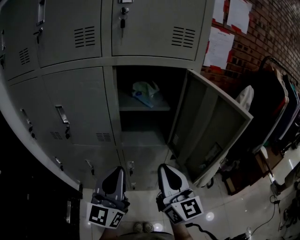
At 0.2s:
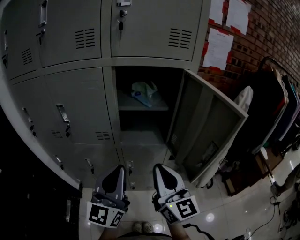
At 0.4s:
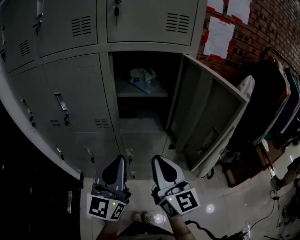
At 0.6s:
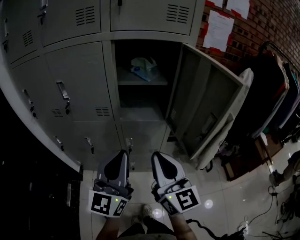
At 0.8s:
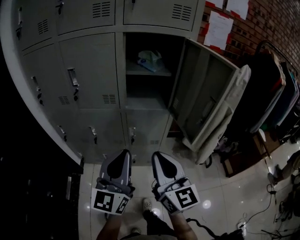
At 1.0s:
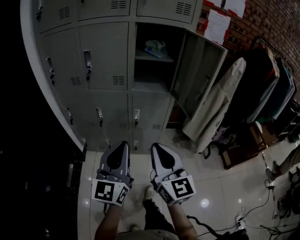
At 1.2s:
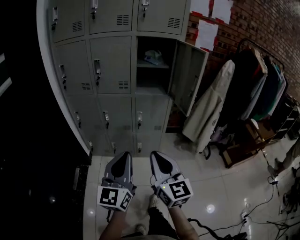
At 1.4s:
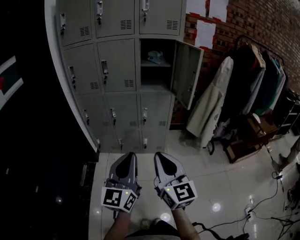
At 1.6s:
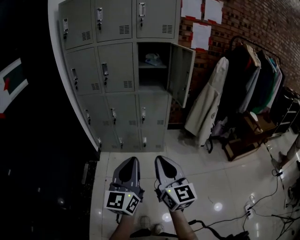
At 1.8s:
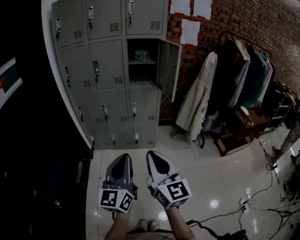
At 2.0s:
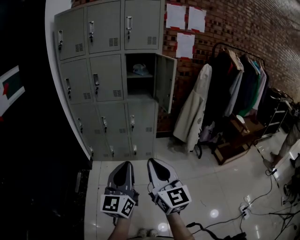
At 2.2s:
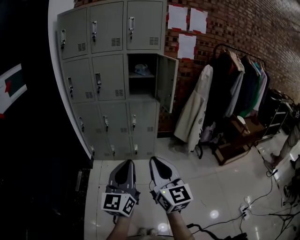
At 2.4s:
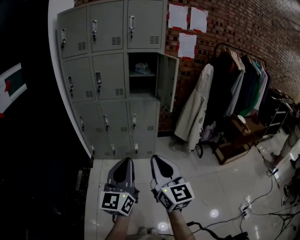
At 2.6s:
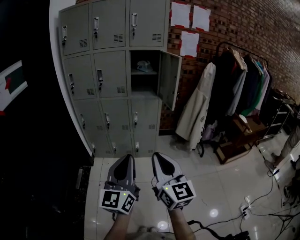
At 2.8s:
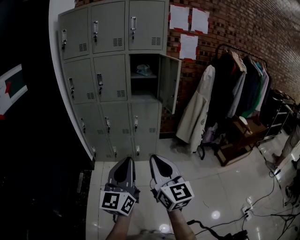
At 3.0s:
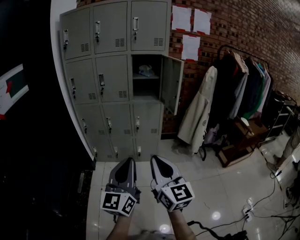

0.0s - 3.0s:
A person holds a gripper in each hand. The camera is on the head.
0.0s - 1.6s: The two grippers travel together, backward, some 50 cm.
1.6s - 3.0s: The right gripper shifts by approximately 5 cm. The left gripper changes place by approximately 5 cm.

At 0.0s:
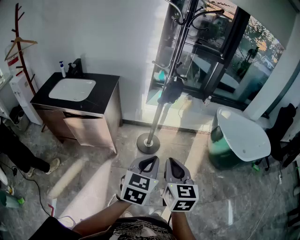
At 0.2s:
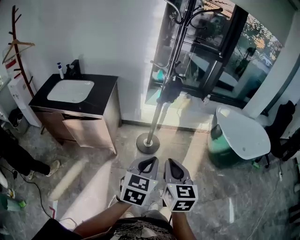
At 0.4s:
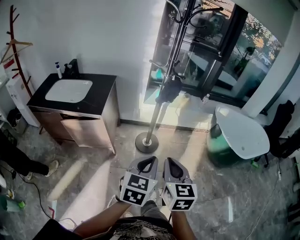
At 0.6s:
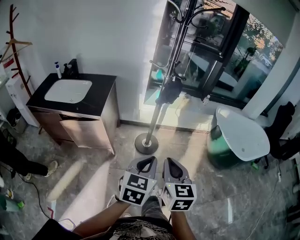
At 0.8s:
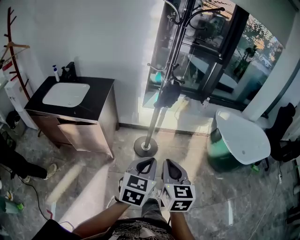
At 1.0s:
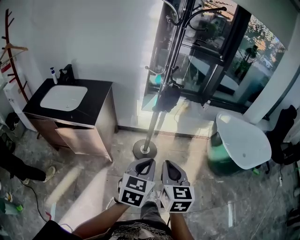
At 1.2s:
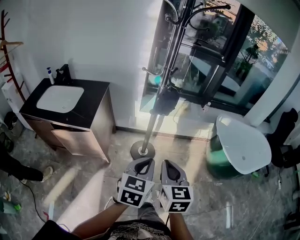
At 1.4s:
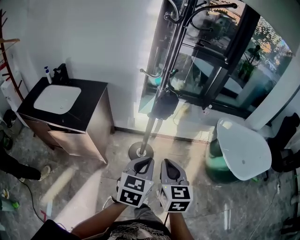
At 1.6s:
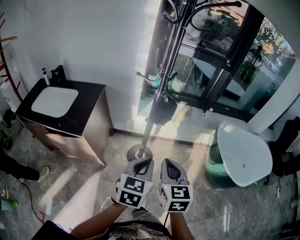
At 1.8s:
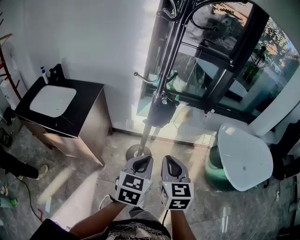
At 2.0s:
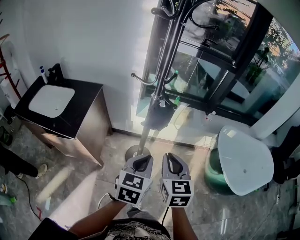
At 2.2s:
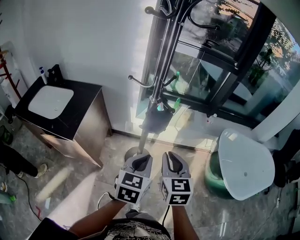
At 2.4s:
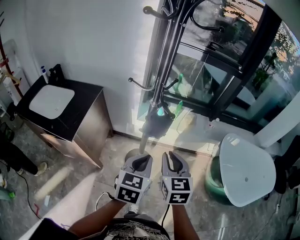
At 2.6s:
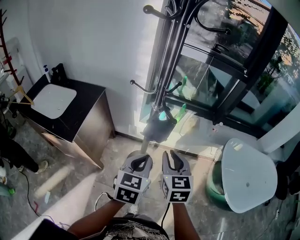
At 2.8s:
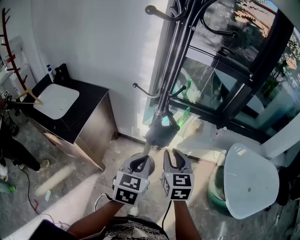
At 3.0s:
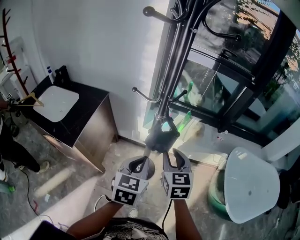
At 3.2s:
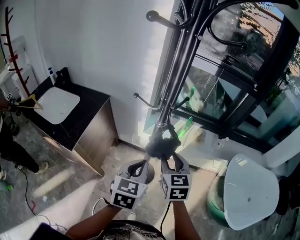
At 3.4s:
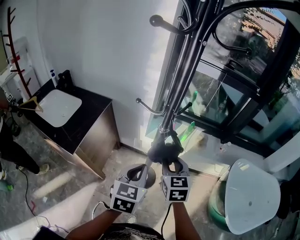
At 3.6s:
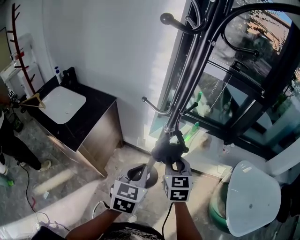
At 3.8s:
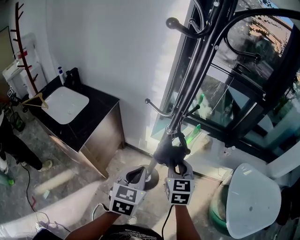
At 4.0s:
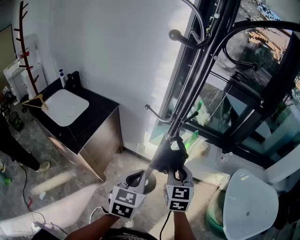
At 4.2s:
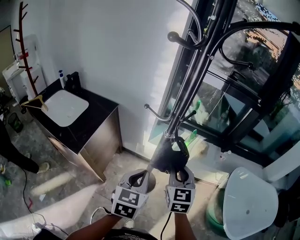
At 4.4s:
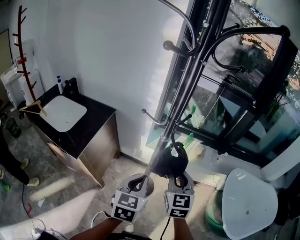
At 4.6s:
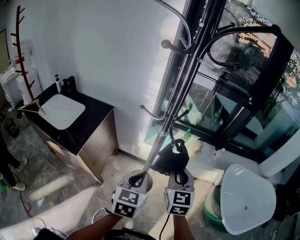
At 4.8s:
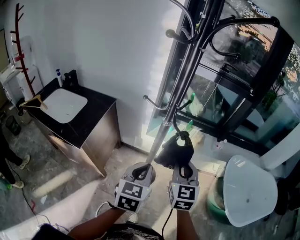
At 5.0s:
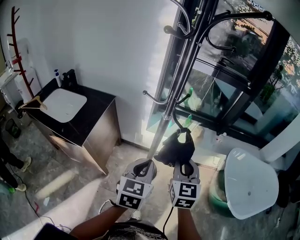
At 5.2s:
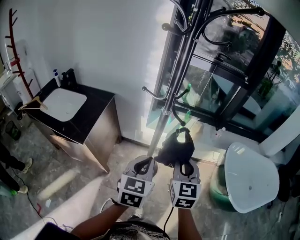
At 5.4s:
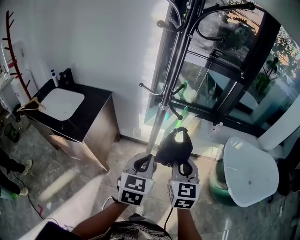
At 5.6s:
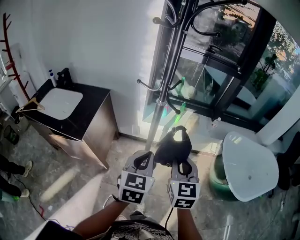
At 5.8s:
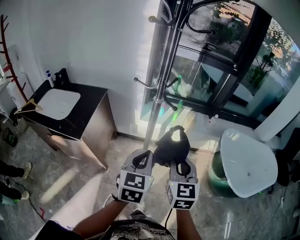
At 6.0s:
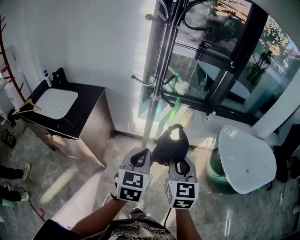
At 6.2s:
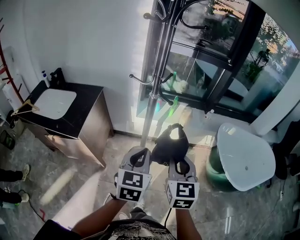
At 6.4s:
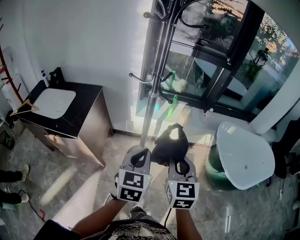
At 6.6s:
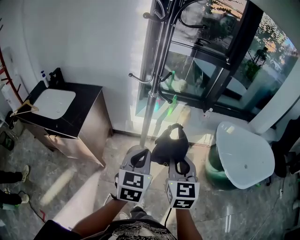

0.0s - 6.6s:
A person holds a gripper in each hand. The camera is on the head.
0.0s - 1.6s: The grippers both shift forward by some 20 cm.
1.6s - 3.2s: Both grippers move forward, about 20 cm. The right gripper opens its fingers.
3.2s - 5.0s: The right gripper shifts about 10 cm backward and upward, and closes its fingers. The left gripper is displaced backward by approximately 5 cm.
5.0s - 6.6s: The left gripper is displaced backward by roughly 5 cm. Meanwhile the right gripper goes some 10 cm backward.

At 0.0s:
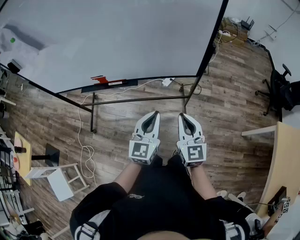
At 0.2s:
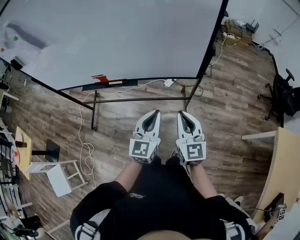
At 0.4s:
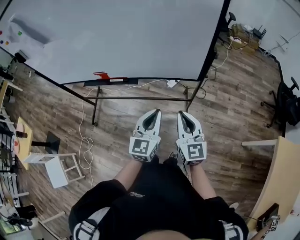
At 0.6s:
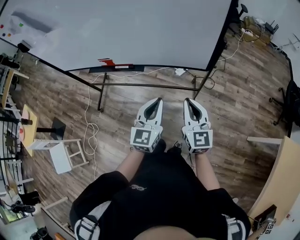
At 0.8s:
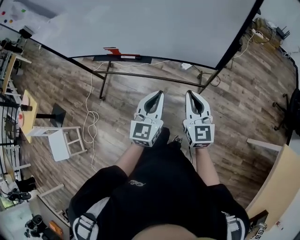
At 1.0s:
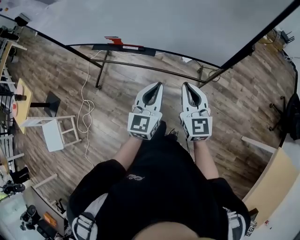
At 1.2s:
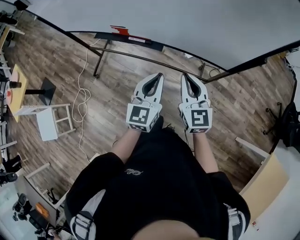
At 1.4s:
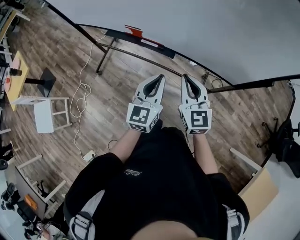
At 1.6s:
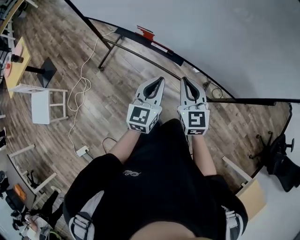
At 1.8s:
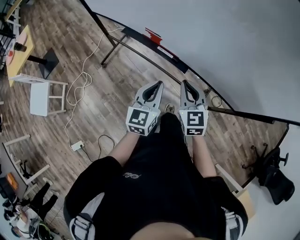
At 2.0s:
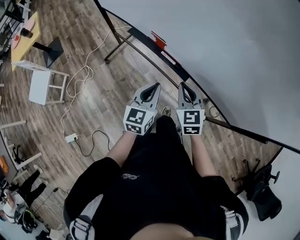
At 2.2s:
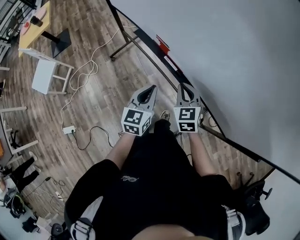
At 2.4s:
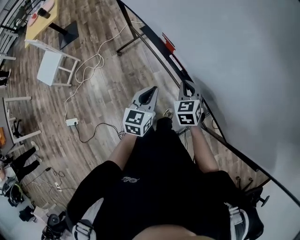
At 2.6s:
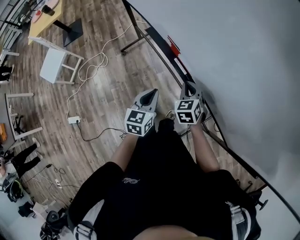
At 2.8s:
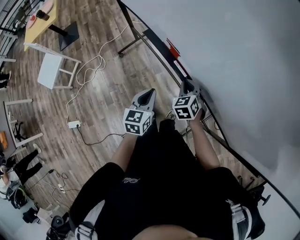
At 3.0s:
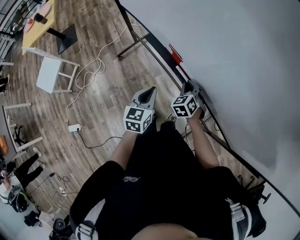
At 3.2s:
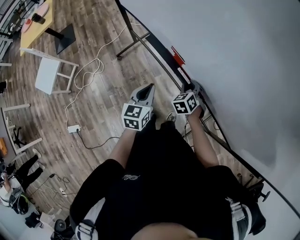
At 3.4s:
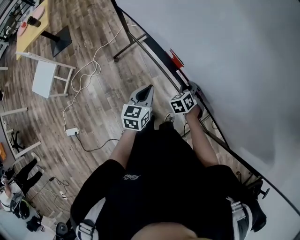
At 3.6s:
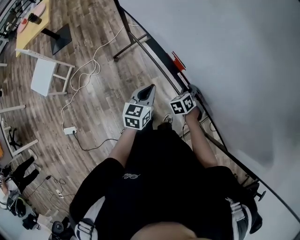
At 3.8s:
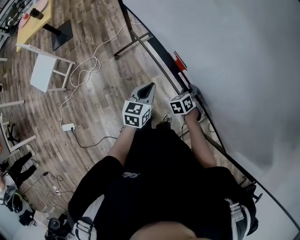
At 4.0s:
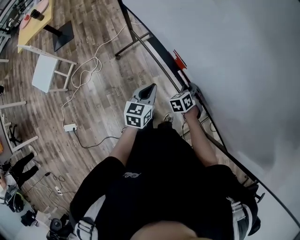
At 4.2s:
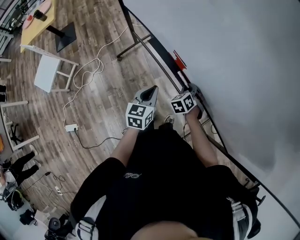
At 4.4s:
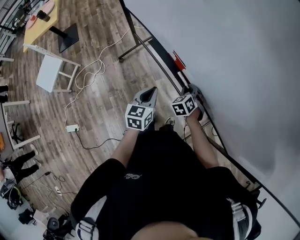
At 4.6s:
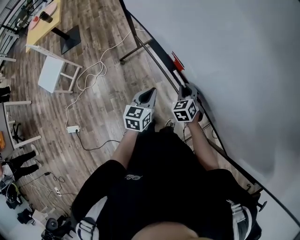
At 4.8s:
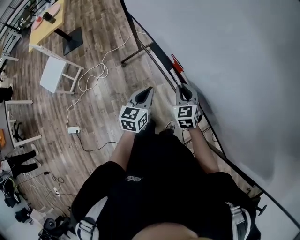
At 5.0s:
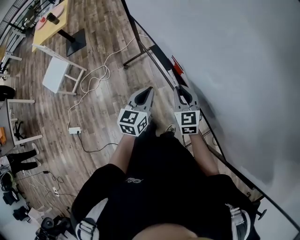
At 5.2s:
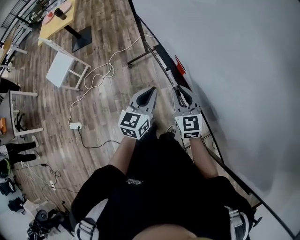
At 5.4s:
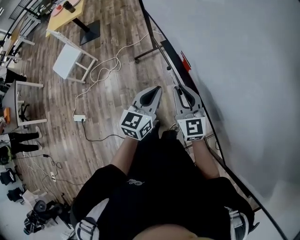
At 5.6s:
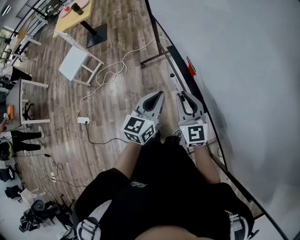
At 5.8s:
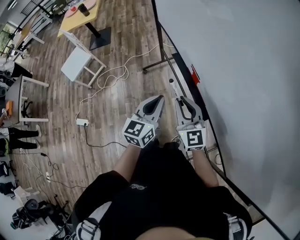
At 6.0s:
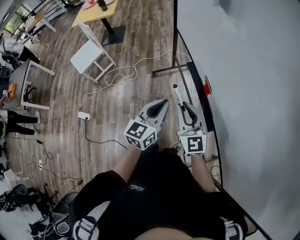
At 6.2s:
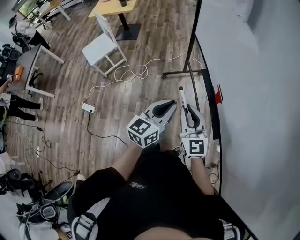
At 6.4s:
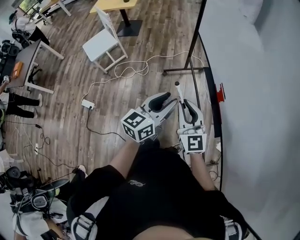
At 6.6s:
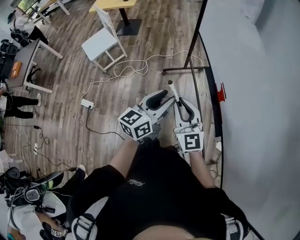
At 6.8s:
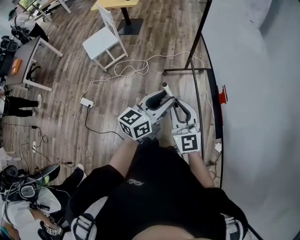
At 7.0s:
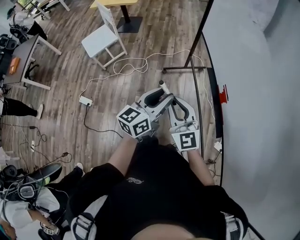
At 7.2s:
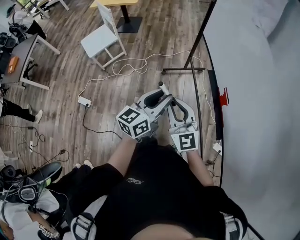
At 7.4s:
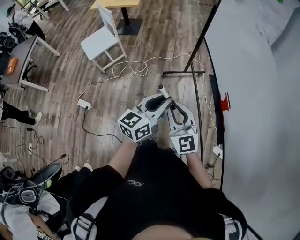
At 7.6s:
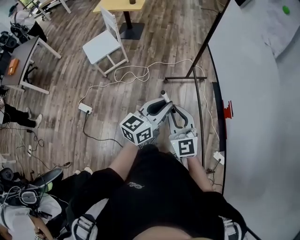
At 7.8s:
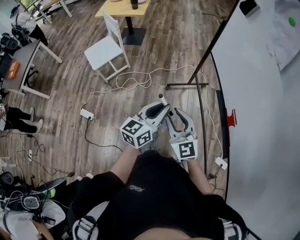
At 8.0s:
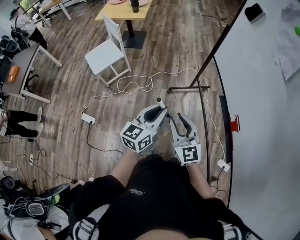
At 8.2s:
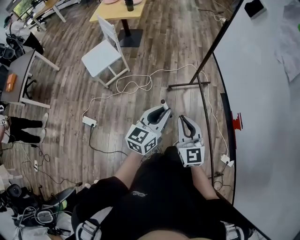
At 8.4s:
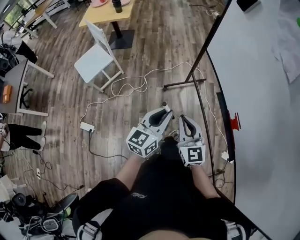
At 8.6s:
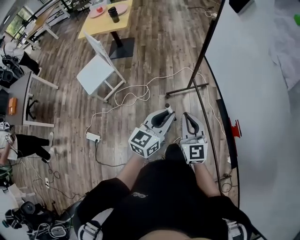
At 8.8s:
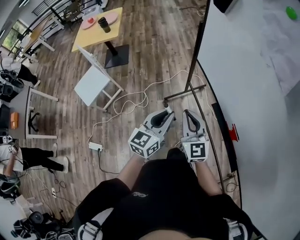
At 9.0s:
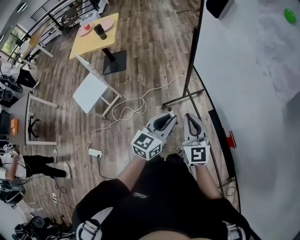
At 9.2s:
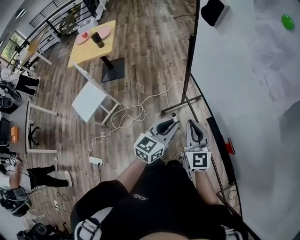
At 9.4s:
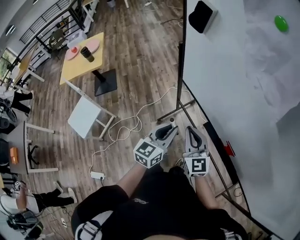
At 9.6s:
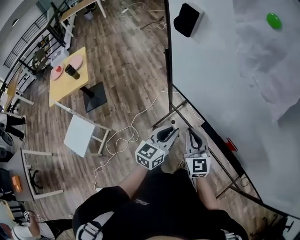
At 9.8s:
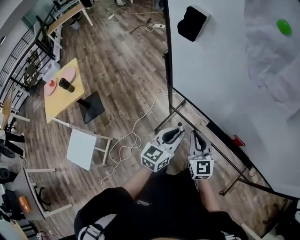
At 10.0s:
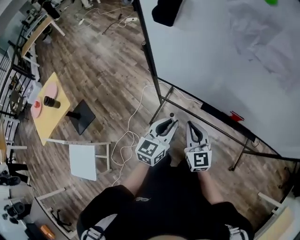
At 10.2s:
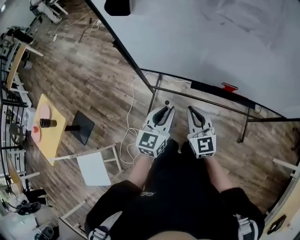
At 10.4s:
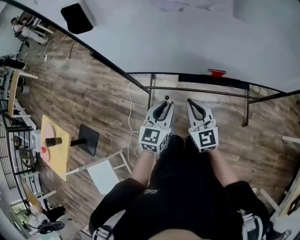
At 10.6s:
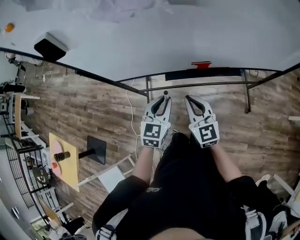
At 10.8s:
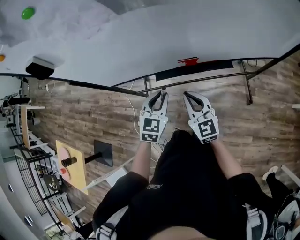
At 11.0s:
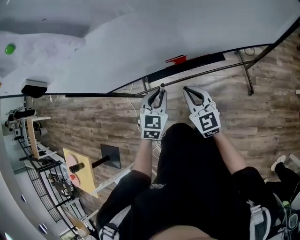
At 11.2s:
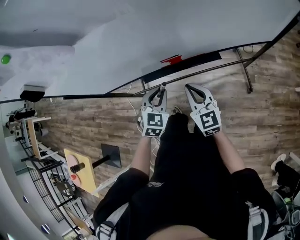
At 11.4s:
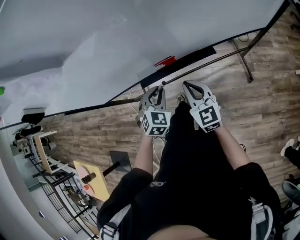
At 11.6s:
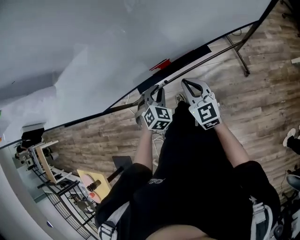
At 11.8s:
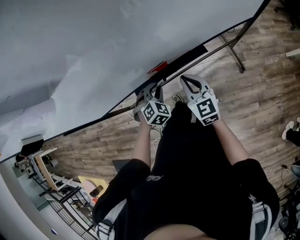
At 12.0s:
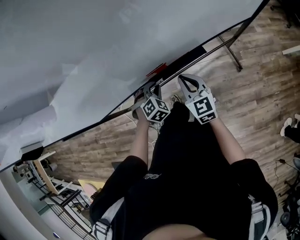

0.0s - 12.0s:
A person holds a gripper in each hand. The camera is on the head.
0.0s - 1.6s: The right gripper shifts by roughly 25 cm, and turns by about 30 degrees. Meanwhile the left gripper ends up approximately 20 cm from where it was, and swivels approximately 30 degrees.
1.6s - 3.0s: The left gripper travels forward, downward and to the left by about 20 cm, and changes its angle by approximately 30 degrees. Meanwhile the right gripper moves forward and downward, approximately 25 cm, and tilts its fingers some 30 degrees downward.
4.4s - 6.0s: The right gripper heads upward, covering approximately 25 cm, and points its fingers roughly 50 degrees further upward. The left gripper goes roughly 15 cm upward, and swivels some 20 degrees.
6.0s - 7.6s: The grippers both shift to the left by some 20 cm. The right gripper swivels some 20 degrees; the left gripper opens, then closes again.
7.6s - 9.0s: The grippers both shift forward by approximately 25 cm. The right gripper changes its angle by some 30 degrees.
9.0s - 10.4s: The right gripper shifts by roughly 10 cm, and changes its angle by about 50 degrees. Meanwhile the left gripper moves some 10 cm, and changes its angle by about 50 degrees.
10.4s - 12.0s: The left gripper is displaced to the right, downward and forward by roughly 30 cm, and twists some 60 degrees clockwise, seen from behind; the right gripper is displaced to the right, forward and downward by some 30 cm, and changes its angle by roughly 30 degrees.

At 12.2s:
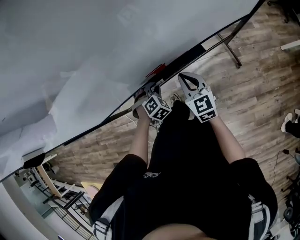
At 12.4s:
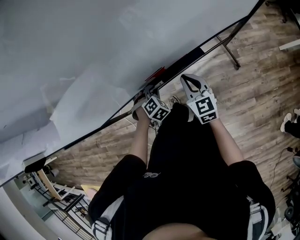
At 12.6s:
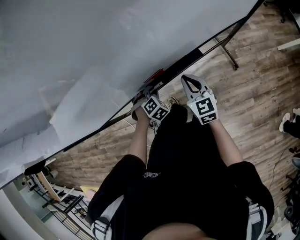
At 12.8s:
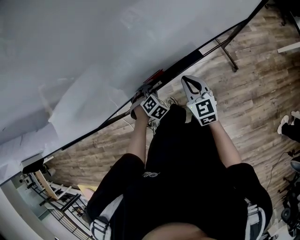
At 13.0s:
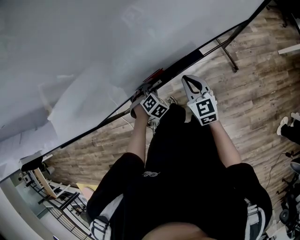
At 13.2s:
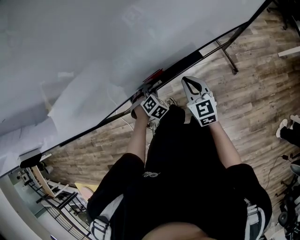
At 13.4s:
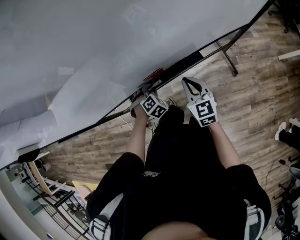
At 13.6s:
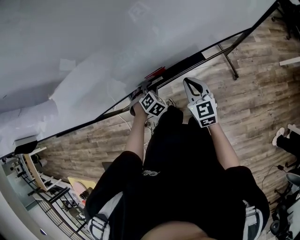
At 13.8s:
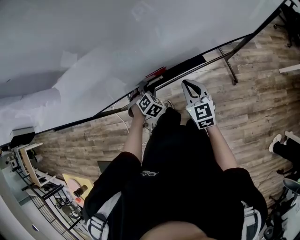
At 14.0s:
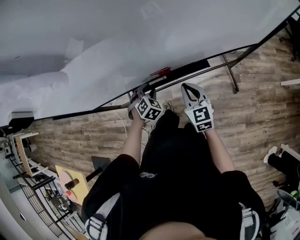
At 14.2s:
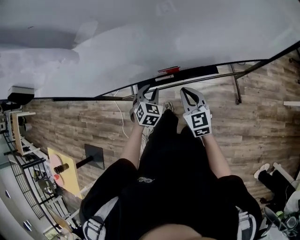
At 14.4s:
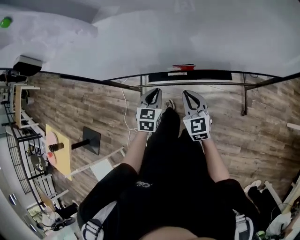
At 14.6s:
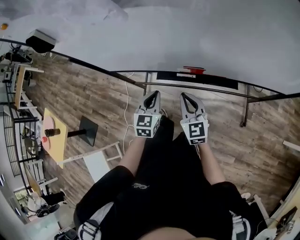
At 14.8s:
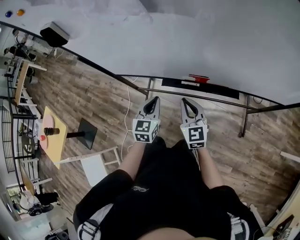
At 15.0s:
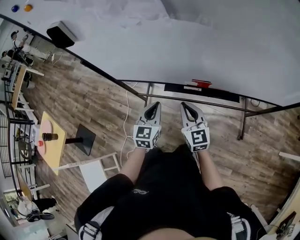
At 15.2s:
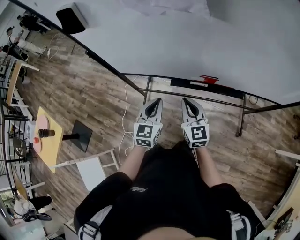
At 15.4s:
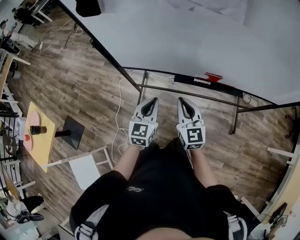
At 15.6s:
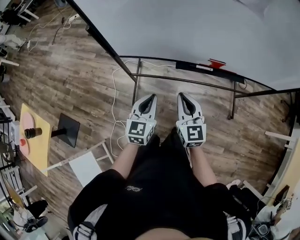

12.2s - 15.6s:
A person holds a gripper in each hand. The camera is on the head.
12.2s - 13.8s: The grippers make only small movements.
13.8s - 15.6s: The right gripper moves to the left, about 30 cm. Meanwhile the left gripper shifts approximately 35 cm to the left, backward and upward, points its fingers about 40 degrees further upward, and closes its fingers.
